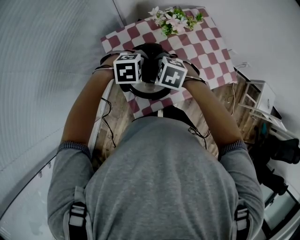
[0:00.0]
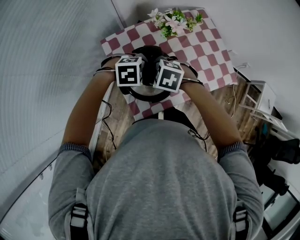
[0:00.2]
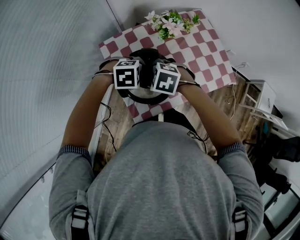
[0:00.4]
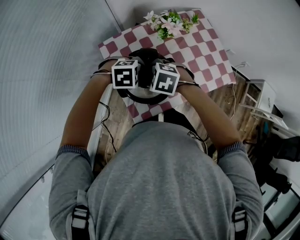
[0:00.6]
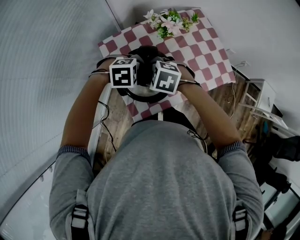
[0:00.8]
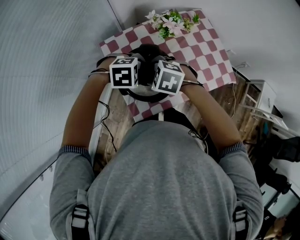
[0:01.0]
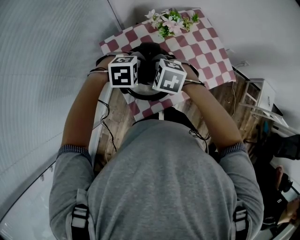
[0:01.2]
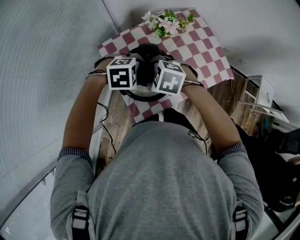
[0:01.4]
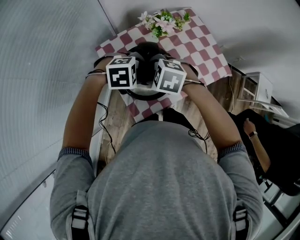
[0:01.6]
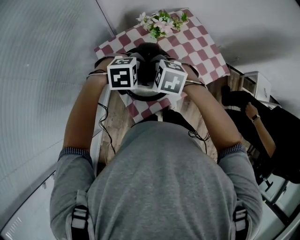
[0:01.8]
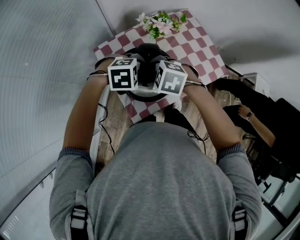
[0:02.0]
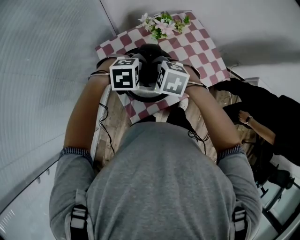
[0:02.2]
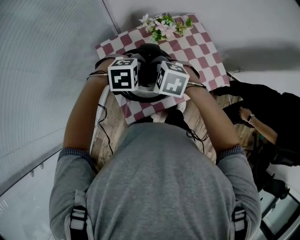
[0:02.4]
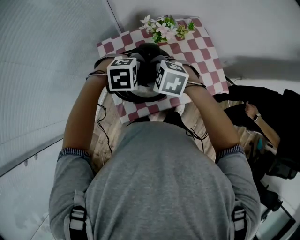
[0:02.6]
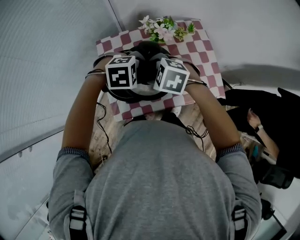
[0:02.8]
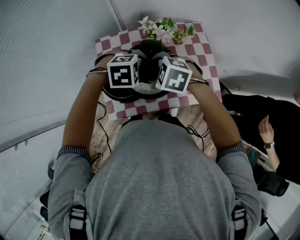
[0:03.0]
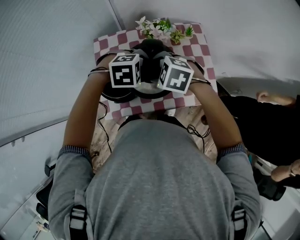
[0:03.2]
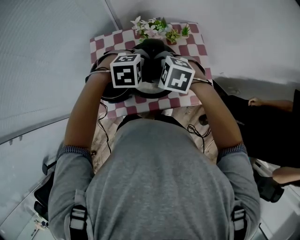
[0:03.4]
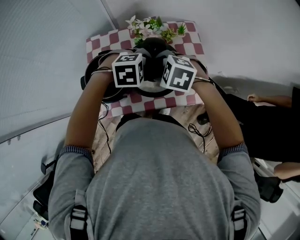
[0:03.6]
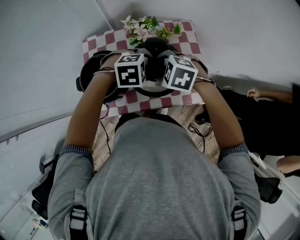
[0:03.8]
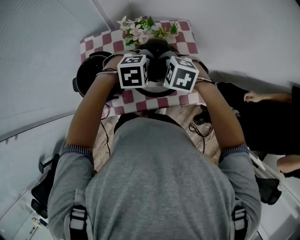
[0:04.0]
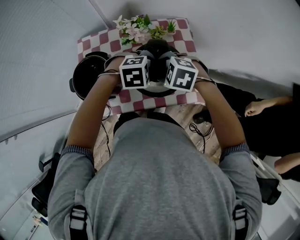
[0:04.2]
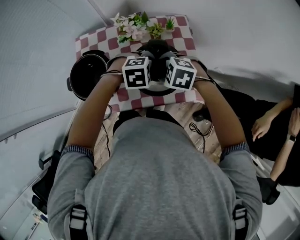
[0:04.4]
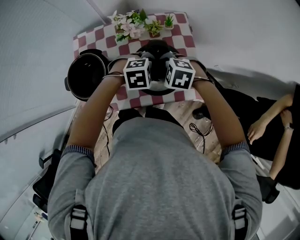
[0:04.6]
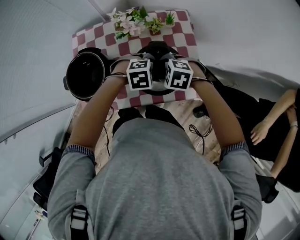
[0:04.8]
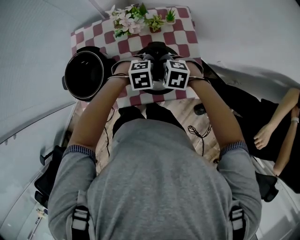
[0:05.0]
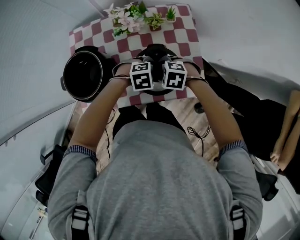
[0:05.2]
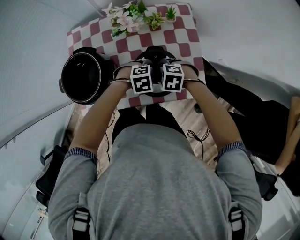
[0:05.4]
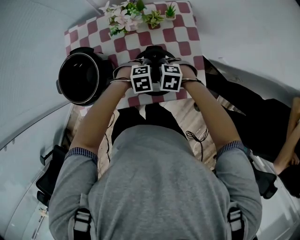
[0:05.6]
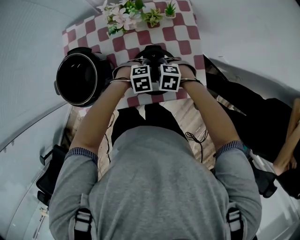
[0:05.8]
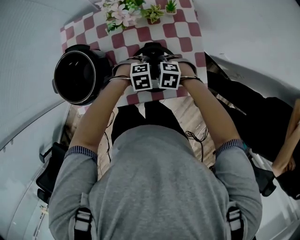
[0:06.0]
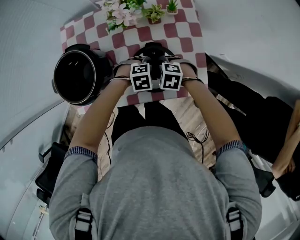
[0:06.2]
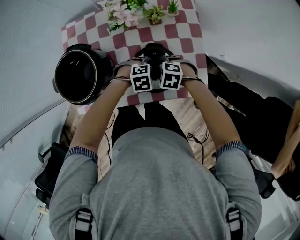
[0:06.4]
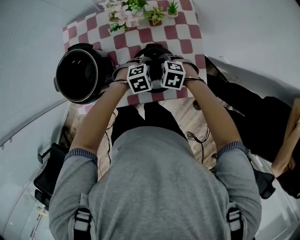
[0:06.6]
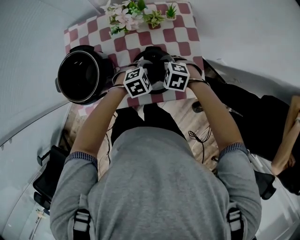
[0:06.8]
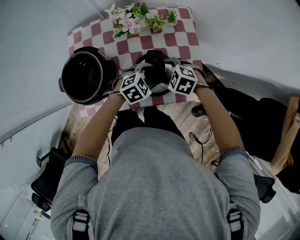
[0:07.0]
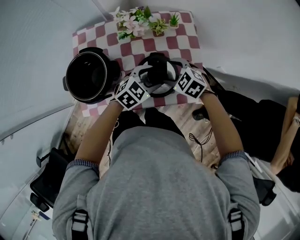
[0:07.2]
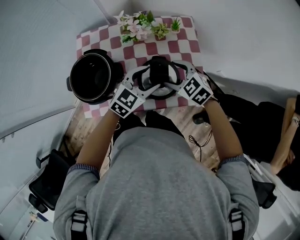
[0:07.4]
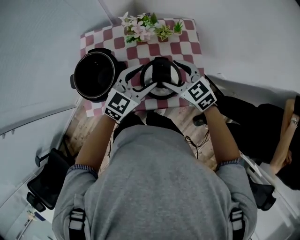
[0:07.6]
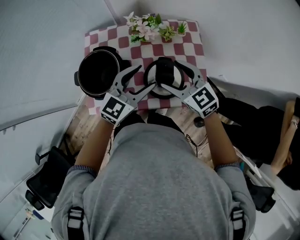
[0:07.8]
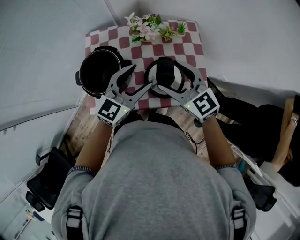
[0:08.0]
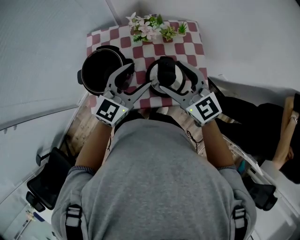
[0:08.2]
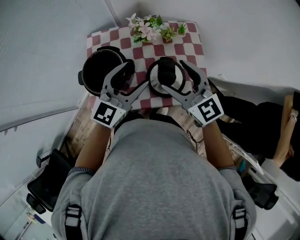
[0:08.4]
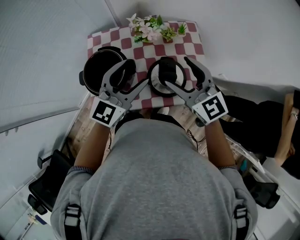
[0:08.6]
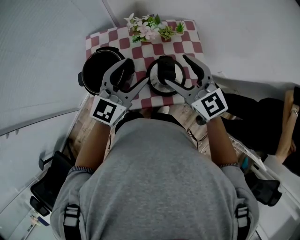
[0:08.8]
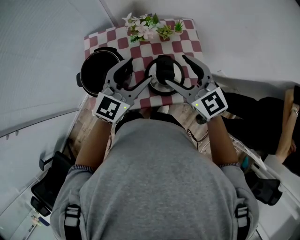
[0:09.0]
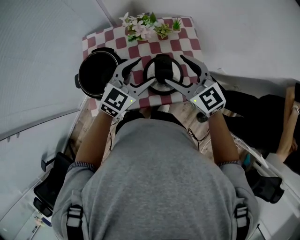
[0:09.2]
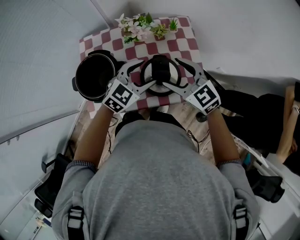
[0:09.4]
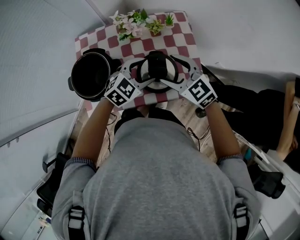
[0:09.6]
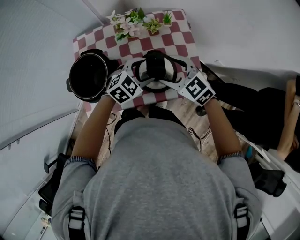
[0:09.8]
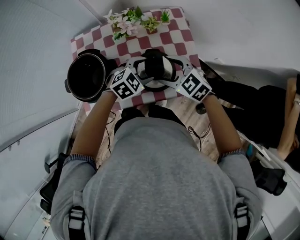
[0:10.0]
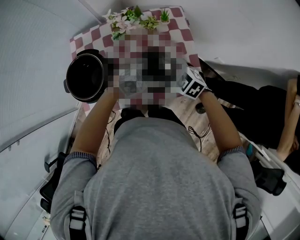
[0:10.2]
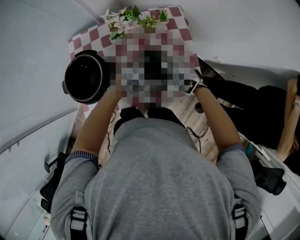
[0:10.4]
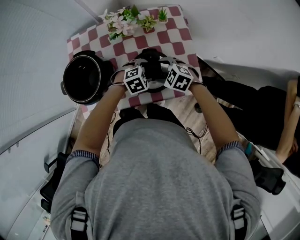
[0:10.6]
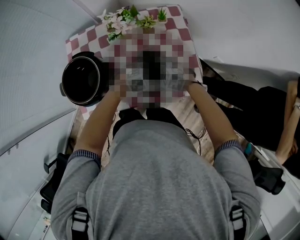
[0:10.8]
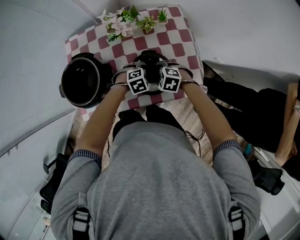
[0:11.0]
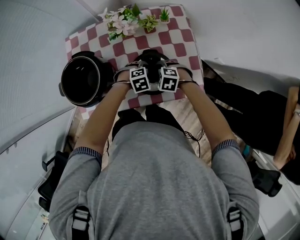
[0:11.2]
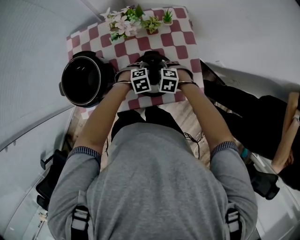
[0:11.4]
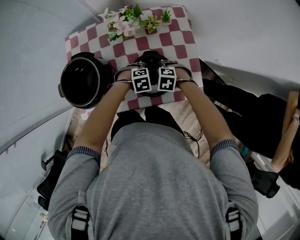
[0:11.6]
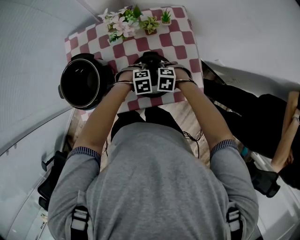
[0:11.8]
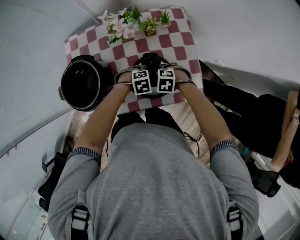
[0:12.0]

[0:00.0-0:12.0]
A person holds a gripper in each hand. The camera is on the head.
0:00.0 to 0:01.6: The right gripper ends up some 5 cm from where it was.
0:01.6 to 0:03.0: The right gripper shifts by approximately 10 cm, while the left gripper changes place by roughly 15 cm.
0:03.0 to 0:04.4: The right gripper ends up approximately 20 cm from where it was; the left gripper shifts by roughly 20 cm.
0:04.4 to 0:06.0: The grippers both shift downward by some 20 cm.
0:06.0 to 0:07.6: Both grippers travel together upward, about 25 cm. The left gripper points its fingers some 50 degrees further upward, while the right gripper points its fingers about 40 degrees further upward.
0:07.6 to 0:09.0: The right gripper shifts approximately 10 cm upward, and turns by about 30 degrees. The left gripper moves upward and to the left, approximately 10 cm.
0:09.0 to 0:10.4: The two grippers go approximately 25 cm downward. The left gripper tilts its fingers some 50 degrees downward; the right gripper tips its fingers downward by roughly 40 degrees.
0:10.4 to 0:12.0: The grippers both shift downward by about 10 cm. The right gripper swivels some 30 degrees.

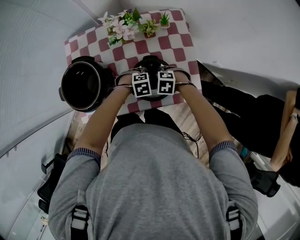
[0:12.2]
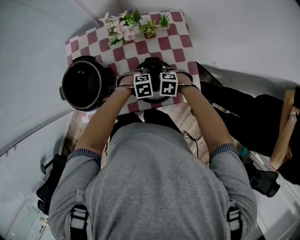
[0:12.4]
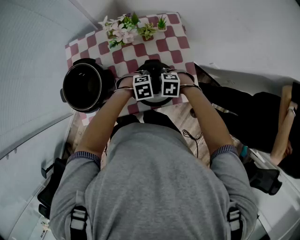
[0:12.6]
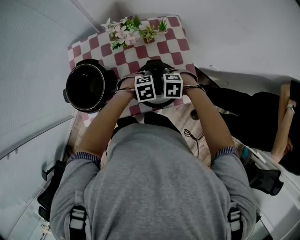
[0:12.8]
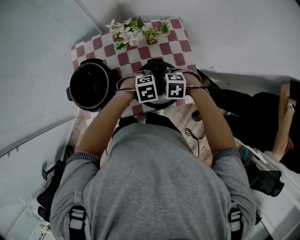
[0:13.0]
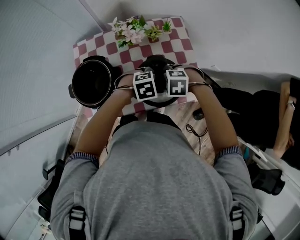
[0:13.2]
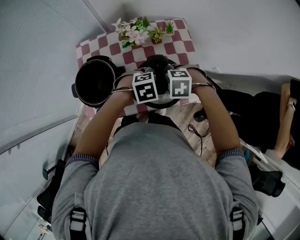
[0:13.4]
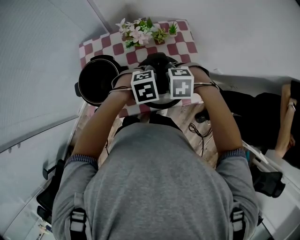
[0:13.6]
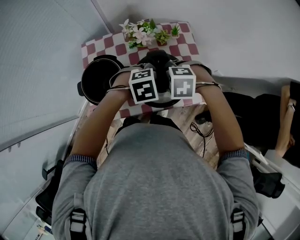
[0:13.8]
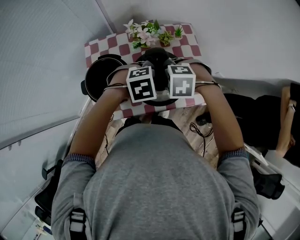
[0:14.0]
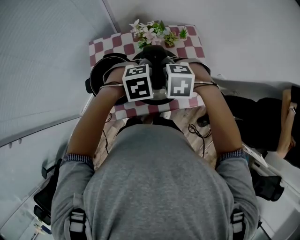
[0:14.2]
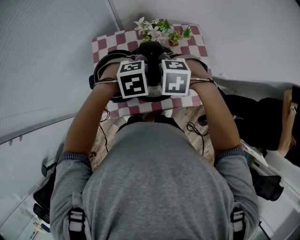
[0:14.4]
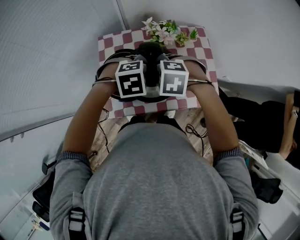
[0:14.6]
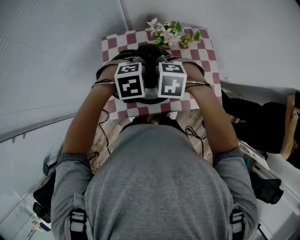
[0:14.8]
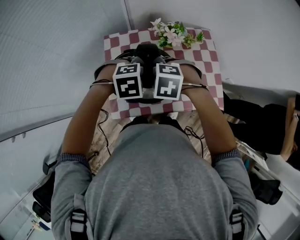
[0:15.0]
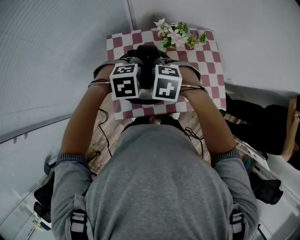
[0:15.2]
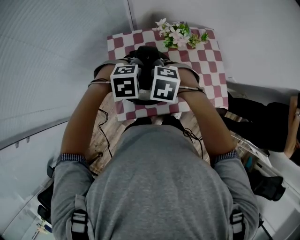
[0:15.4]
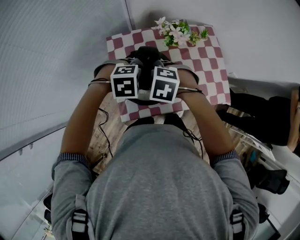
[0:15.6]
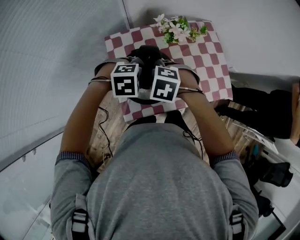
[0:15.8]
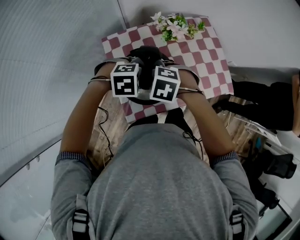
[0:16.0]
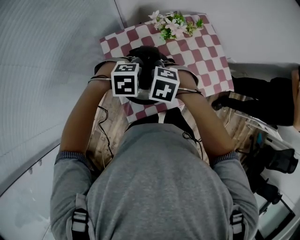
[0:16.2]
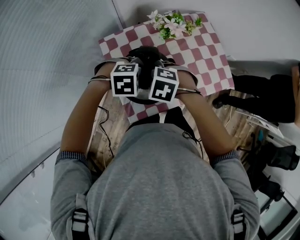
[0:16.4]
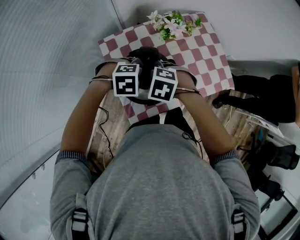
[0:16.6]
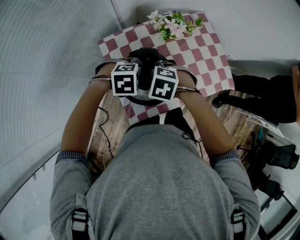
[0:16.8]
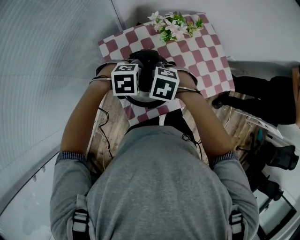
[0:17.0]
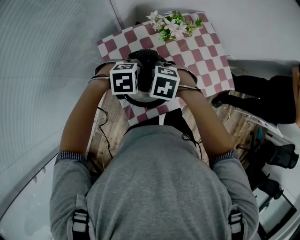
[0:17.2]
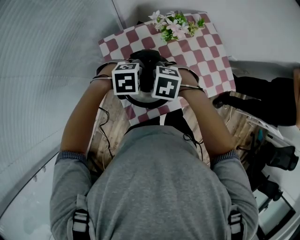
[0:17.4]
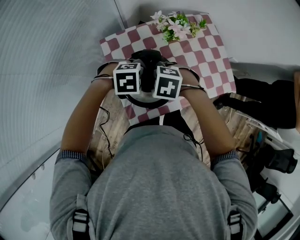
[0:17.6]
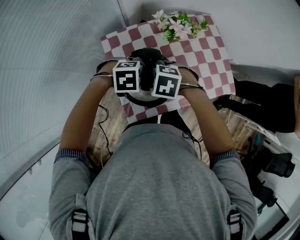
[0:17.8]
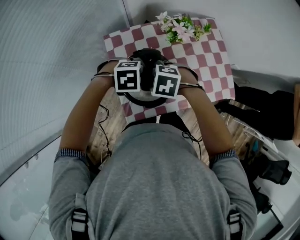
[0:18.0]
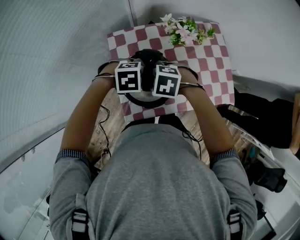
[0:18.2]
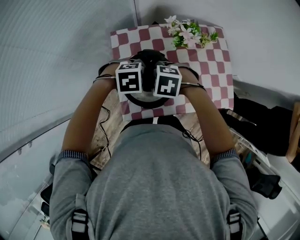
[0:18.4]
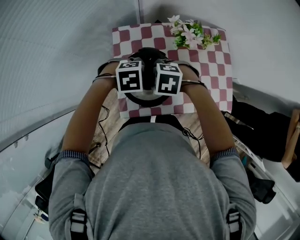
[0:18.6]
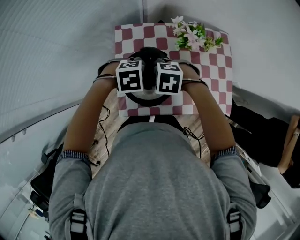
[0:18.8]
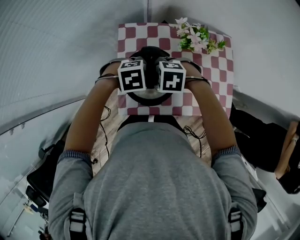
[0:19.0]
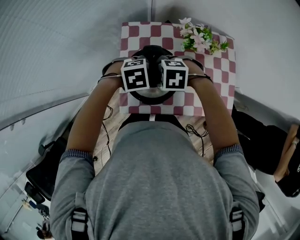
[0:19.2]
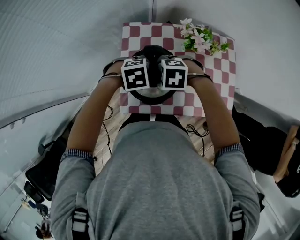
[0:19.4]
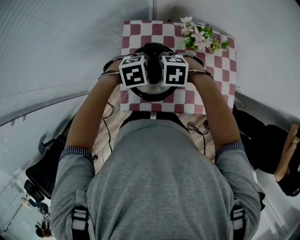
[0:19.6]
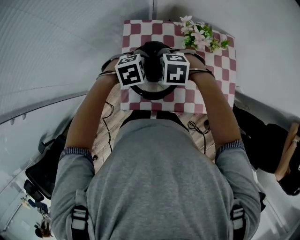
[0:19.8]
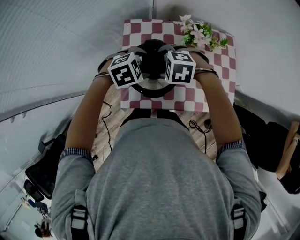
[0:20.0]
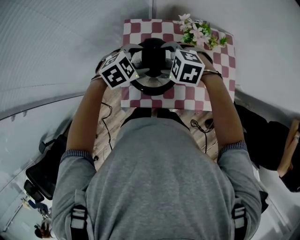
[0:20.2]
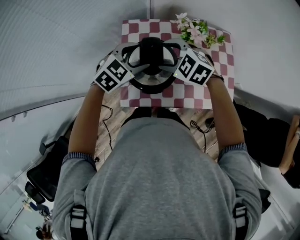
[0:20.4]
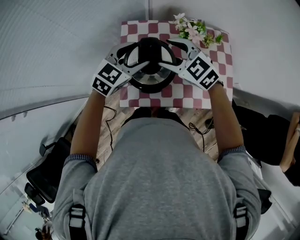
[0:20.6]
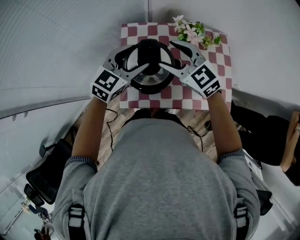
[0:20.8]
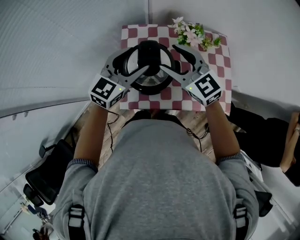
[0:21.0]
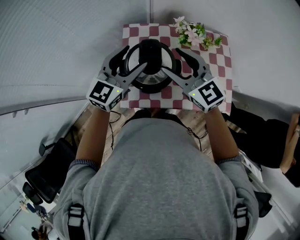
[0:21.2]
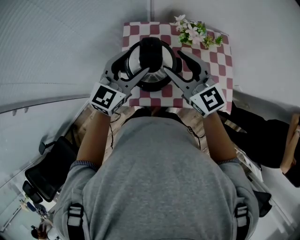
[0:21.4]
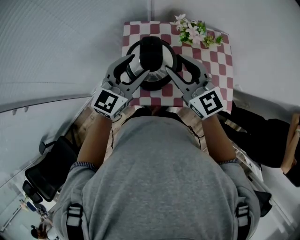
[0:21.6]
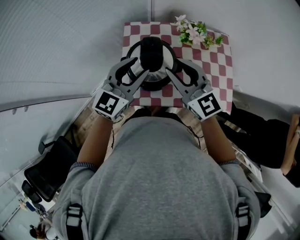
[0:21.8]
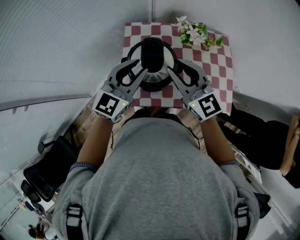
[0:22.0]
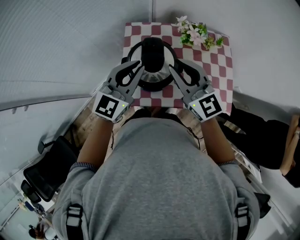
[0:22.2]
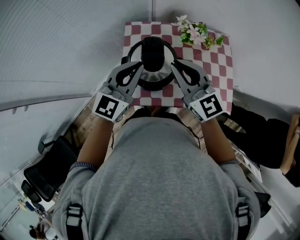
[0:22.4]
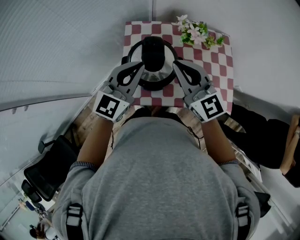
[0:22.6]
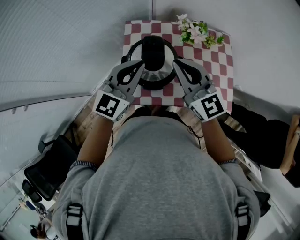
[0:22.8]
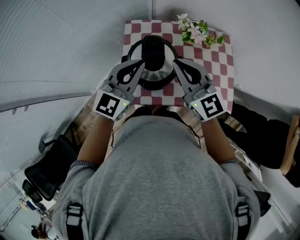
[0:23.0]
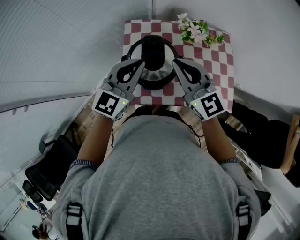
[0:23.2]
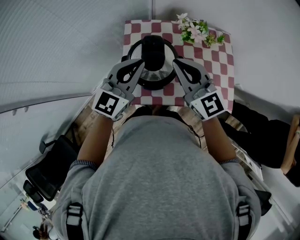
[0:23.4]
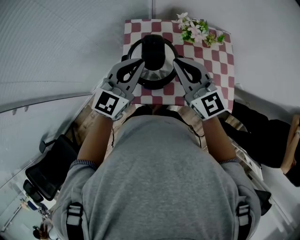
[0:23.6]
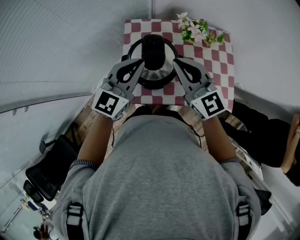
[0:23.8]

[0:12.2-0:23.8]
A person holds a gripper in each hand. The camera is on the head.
0:12.2 to 0:13.6: Both grippers travel together upward, about 20 cm.
0:13.6 to 0:15.0: The right gripper moves about 20 cm, while the left gripper shifts by about 20 cm.
0:15.0 to 0:16.6: The right gripper moves about 10 cm, and turns by some 20 degrees, while the left gripper shifts by roughly 10 cm, and rotates roughly 20 degrees.
0:16.6 to 0:18.0: The grippers stay close to where they were, moving slightly.
0:18.0 to 0:19.4: The right gripper changes its angle by approximately 30 degrees. Meanwhile the left gripper rotates approximately 20 degrees.
0:19.4 to 0:21.0: Both grippers travel together upward, some 15 cm. The left gripper tilts its fingers roughly 60 degrees upward; the right gripper angles its fingers upward, by roughly 50 degrees.
0:21.0 to 0:22.4: The left gripper heads backward, covering some 5 cm, and closes up; the right gripper shifts by some 5 cm, and closes up.
0:22.4 to 0:23.8: Both grippers stay about where they are.
